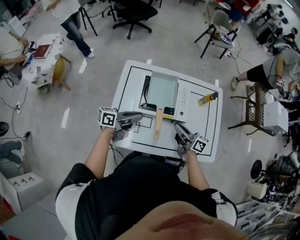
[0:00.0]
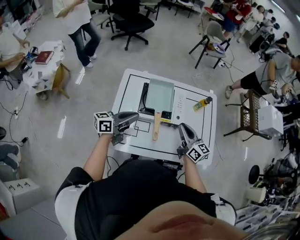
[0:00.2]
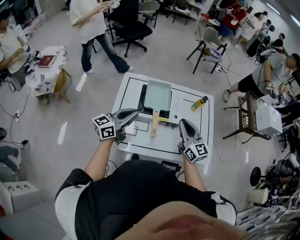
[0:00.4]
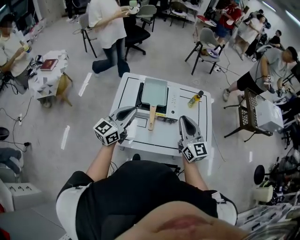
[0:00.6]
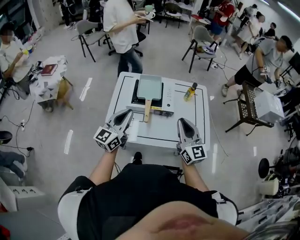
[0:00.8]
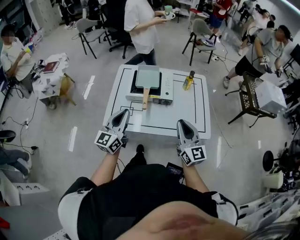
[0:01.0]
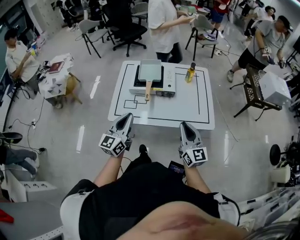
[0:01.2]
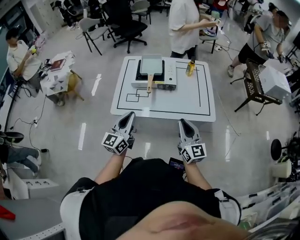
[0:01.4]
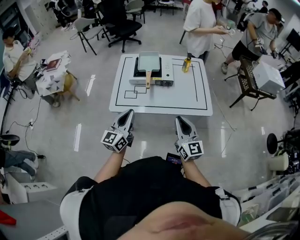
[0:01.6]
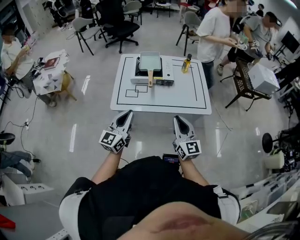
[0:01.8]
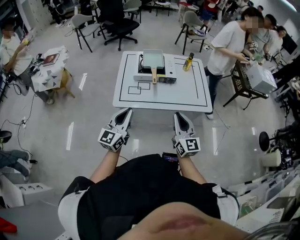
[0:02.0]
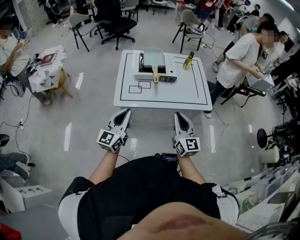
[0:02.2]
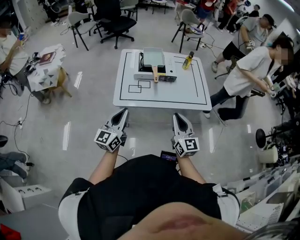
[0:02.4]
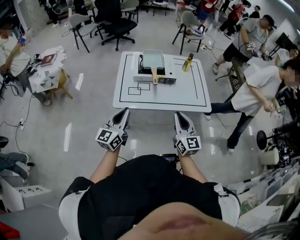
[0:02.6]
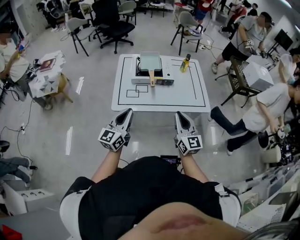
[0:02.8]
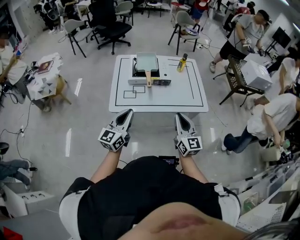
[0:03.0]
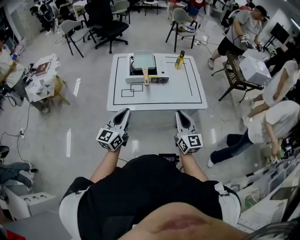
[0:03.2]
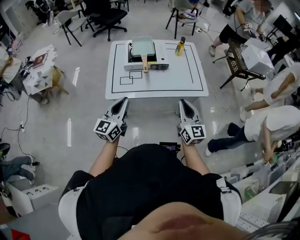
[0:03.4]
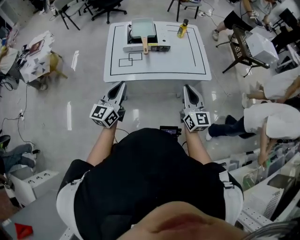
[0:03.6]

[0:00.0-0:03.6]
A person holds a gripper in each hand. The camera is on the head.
0:00.0 to 0:01.8: The left gripper travels backward and upward by about 35 cm, and changes its angle by about 60 degrees; the right gripper travels backward by approximately 35 cm, and rotates around the line of its fingers by about 50 degrees, counterclockwise from behind.
0:01.8 to 0:03.6: The left gripper travels to the left and back again, approximately 10 cm each way.

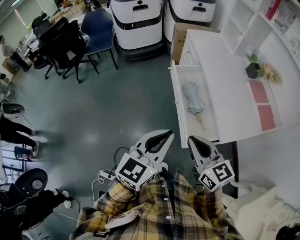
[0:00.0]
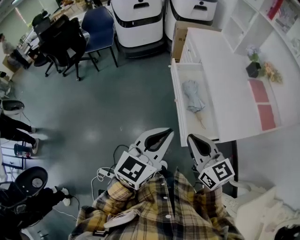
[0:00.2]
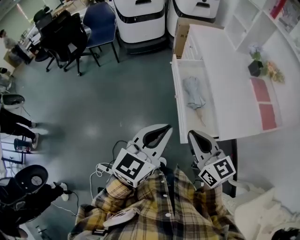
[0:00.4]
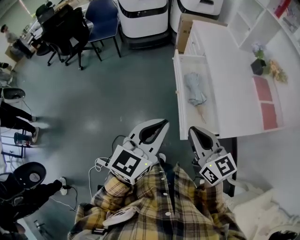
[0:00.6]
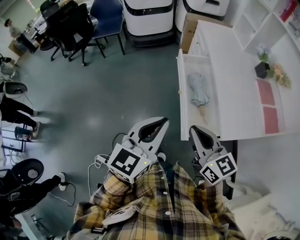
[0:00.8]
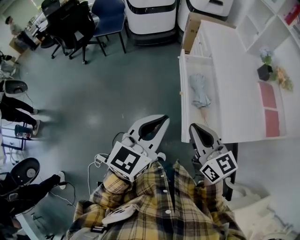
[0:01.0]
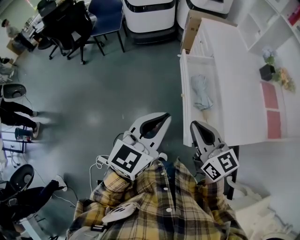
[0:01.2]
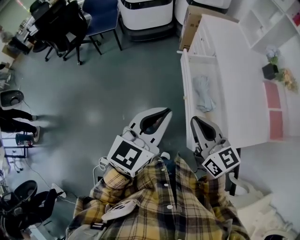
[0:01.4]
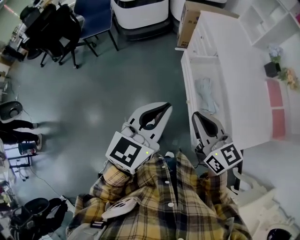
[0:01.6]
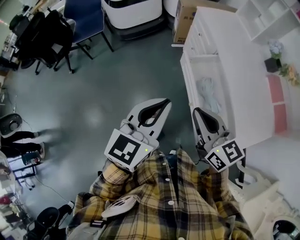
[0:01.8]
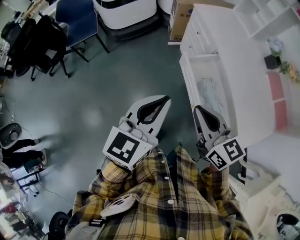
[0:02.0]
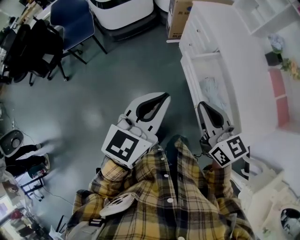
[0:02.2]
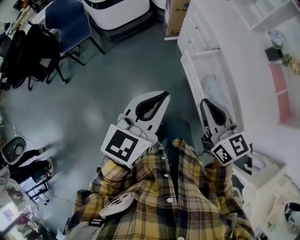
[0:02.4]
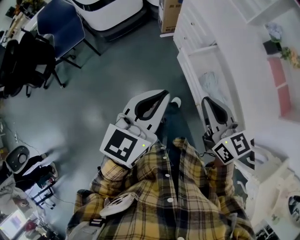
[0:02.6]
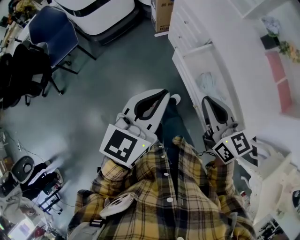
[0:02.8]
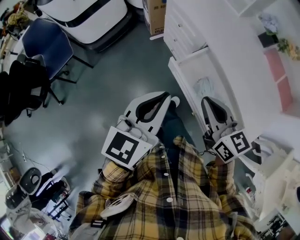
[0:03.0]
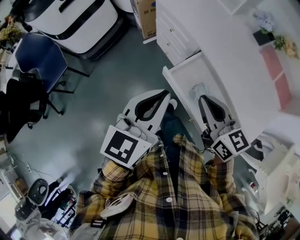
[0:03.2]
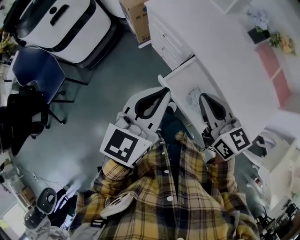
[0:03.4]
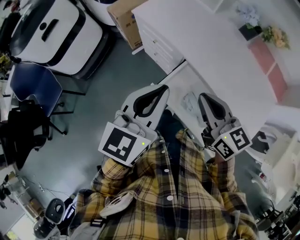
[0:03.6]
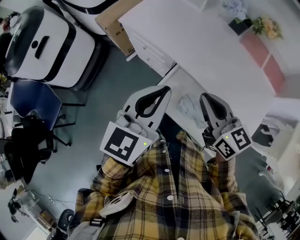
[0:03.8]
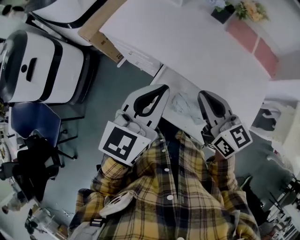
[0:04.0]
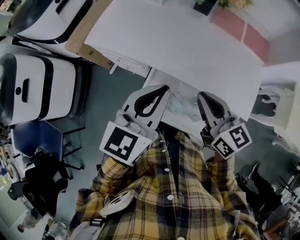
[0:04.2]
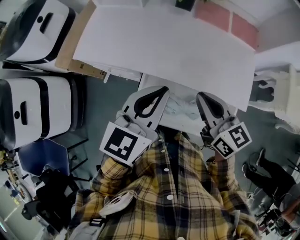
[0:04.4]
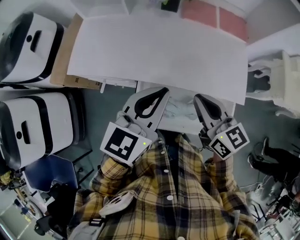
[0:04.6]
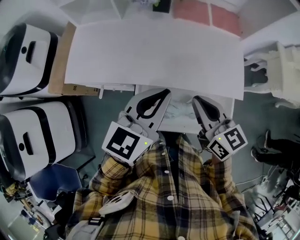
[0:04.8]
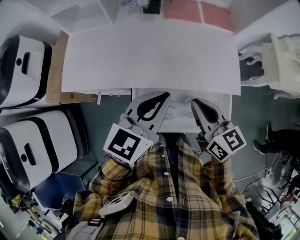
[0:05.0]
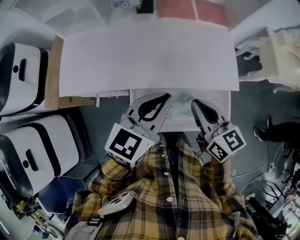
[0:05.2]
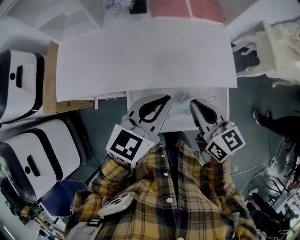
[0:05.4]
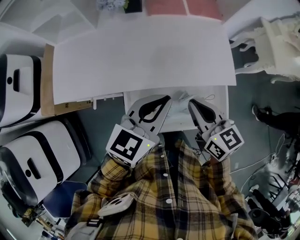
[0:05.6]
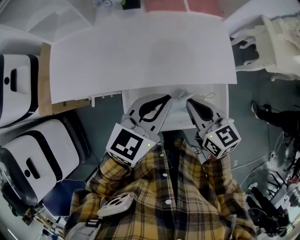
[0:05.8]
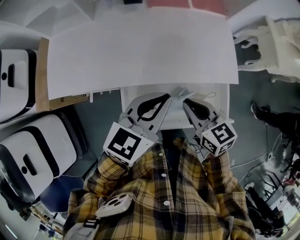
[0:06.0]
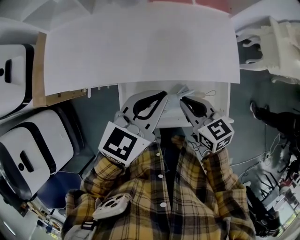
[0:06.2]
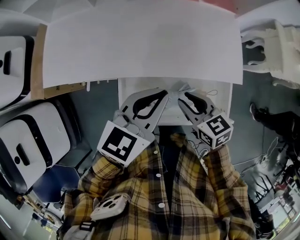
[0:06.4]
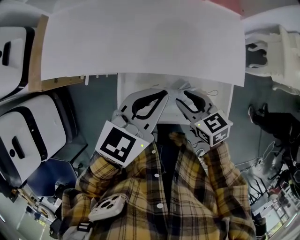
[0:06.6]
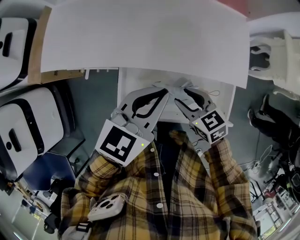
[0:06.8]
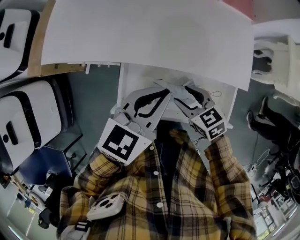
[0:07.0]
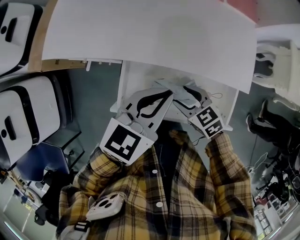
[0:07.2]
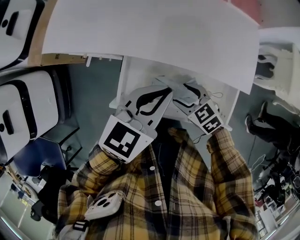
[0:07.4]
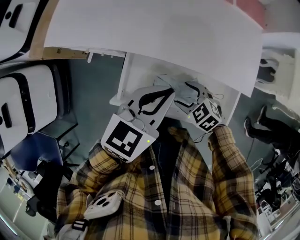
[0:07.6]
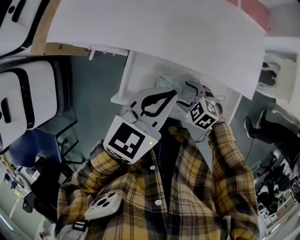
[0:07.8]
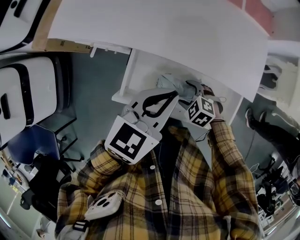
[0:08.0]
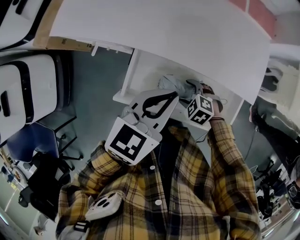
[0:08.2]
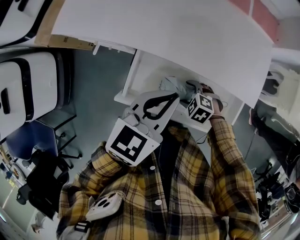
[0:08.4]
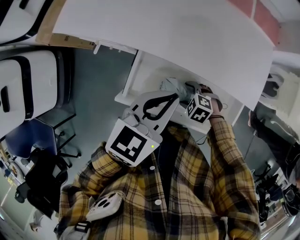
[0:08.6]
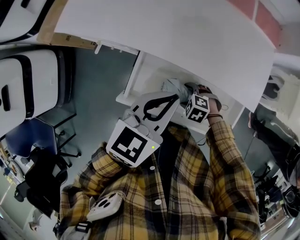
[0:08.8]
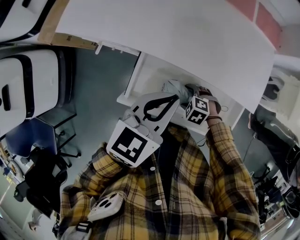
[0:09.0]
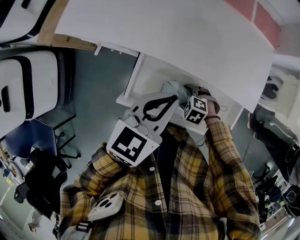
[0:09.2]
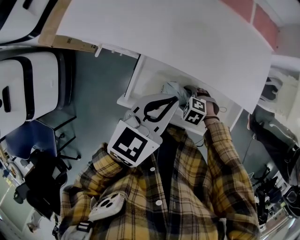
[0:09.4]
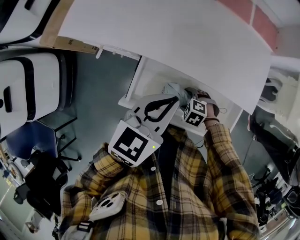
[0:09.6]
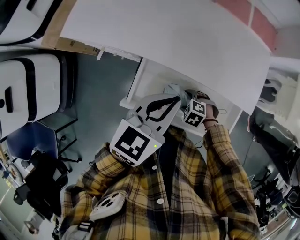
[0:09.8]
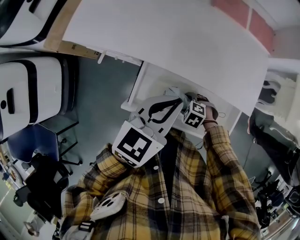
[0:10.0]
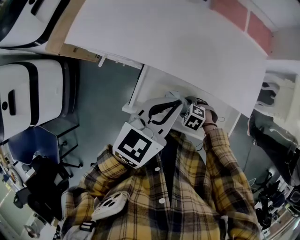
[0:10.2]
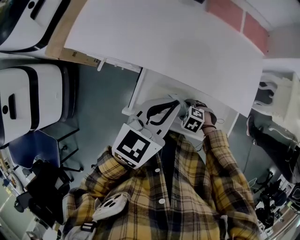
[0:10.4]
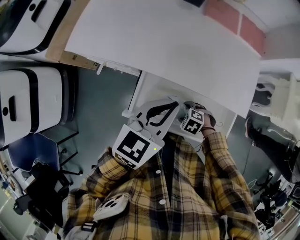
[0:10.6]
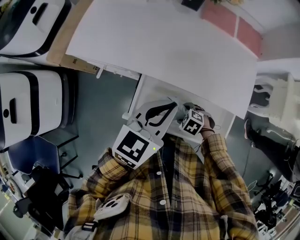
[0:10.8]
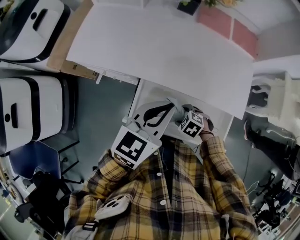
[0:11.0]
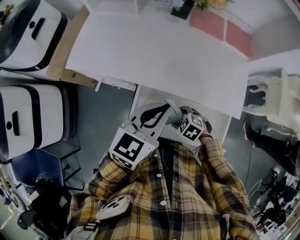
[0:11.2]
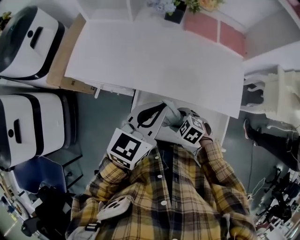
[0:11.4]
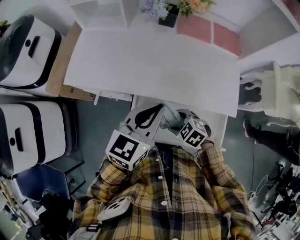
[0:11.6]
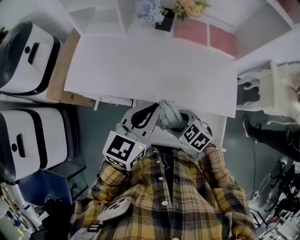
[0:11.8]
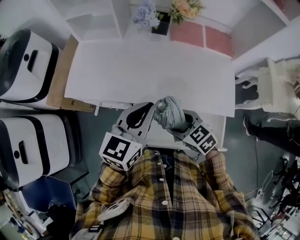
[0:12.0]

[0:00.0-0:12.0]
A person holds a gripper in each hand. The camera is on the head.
0:00.0 to 0:01.6: Both grippers move forward, some 15 cm.
0:01.6 to 0:03.0: Both grippers move forward, roughly 20 cm. The left gripper turns by roughly 20 degrees. The right gripper turns by approximately 30 degrees.
0:03.0 to 0:04.4: The left gripper shifts by about 25 cm, and rotates about 40 degrees. The right gripper shifts by some 20 cm, and rotates roughly 40 degrees.
0:04.4 to 0:06.0: The left gripper shifts approximately 10 cm to the right and downward, and turns by about 30 degrees. Meanwhile the right gripper is displaced downward by about 10 cm, and turns by roughly 20 degrees.
0:06.0 to 0:07.6: The right gripper travels downward by approximately 15 cm, rotates some 50 degrees, and opens its fingers, while the left gripper moves roughly 5 cm.
0:07.6 to 0:09.0: The right gripper heads downward, covering some 10 cm, and swivels about 30 degrees.
0:09.0 to 0:10.4: The grippers stay close to where they were, moving slightly.
0:10.4 to 0:12.0: The left gripper ends up about 10 cm from where it was. The right gripper moves upward, some 25 cm, and tilts its fingers roughly 30 degrees upward.

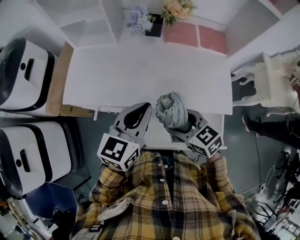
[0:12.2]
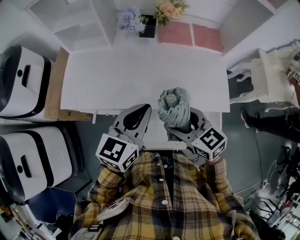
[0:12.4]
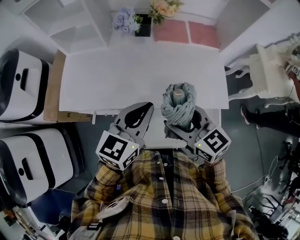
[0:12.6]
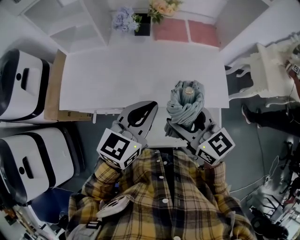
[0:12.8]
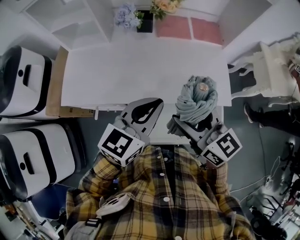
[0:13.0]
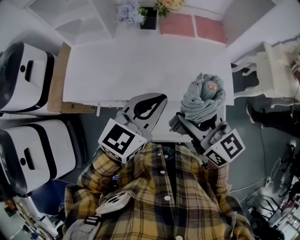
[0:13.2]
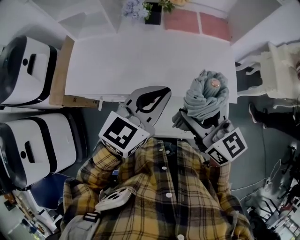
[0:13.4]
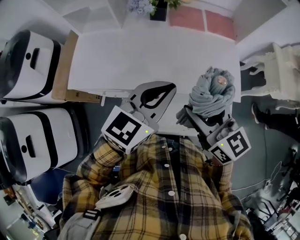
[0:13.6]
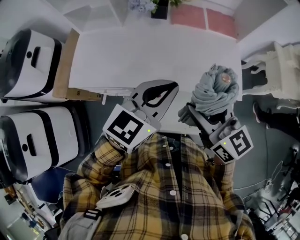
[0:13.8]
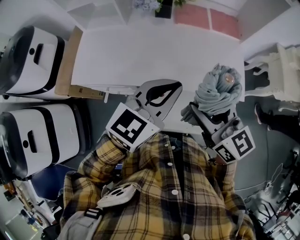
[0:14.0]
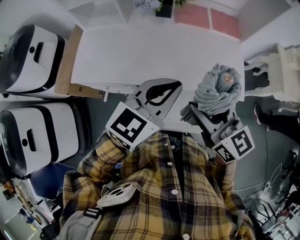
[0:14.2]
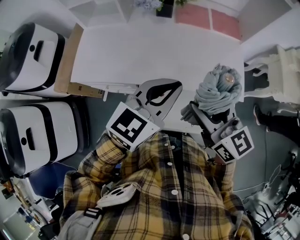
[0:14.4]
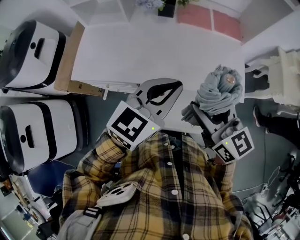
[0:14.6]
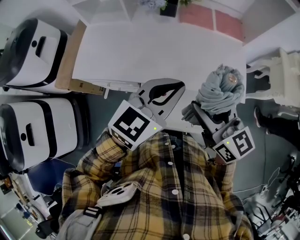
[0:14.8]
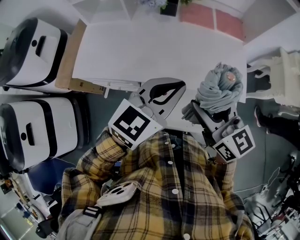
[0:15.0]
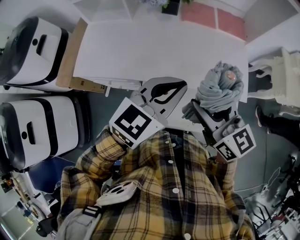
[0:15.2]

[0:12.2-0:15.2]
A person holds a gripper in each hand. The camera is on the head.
0:12.2 to 0:13.8: The right gripper goes roughly 15 cm upward, and changes its angle by approximately 40 degrees. The left gripper travels to the right by roughly 5 cm.
0:13.8 to 0:15.2: The two grippers keep their place.

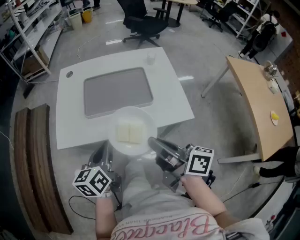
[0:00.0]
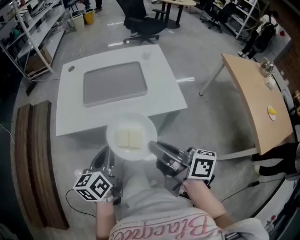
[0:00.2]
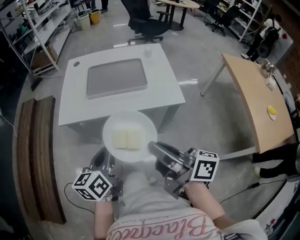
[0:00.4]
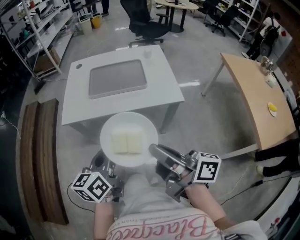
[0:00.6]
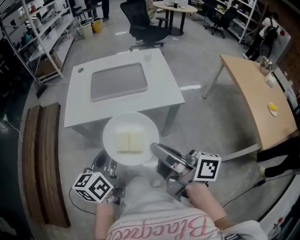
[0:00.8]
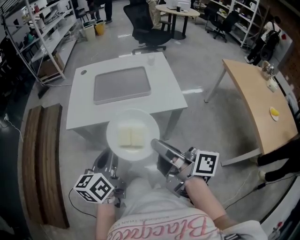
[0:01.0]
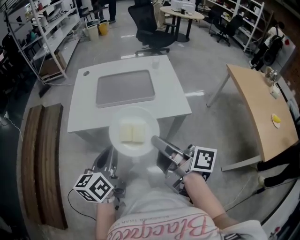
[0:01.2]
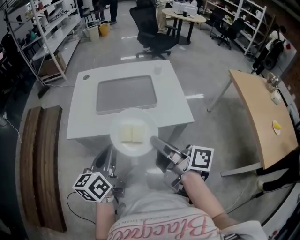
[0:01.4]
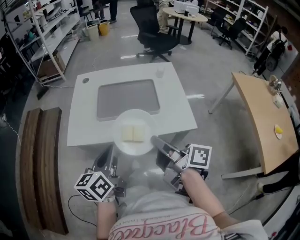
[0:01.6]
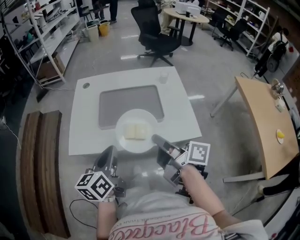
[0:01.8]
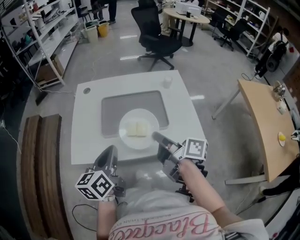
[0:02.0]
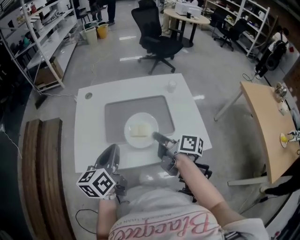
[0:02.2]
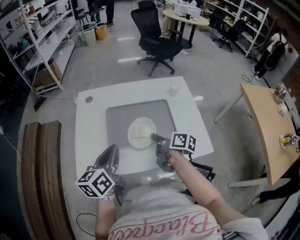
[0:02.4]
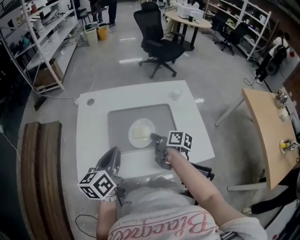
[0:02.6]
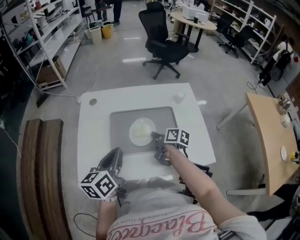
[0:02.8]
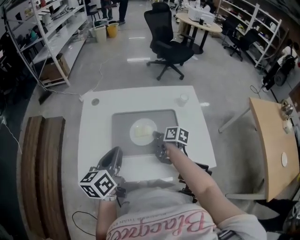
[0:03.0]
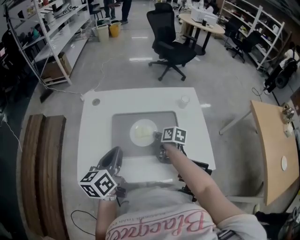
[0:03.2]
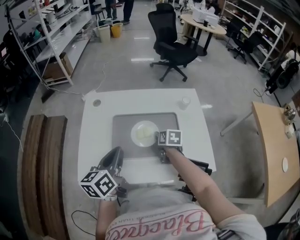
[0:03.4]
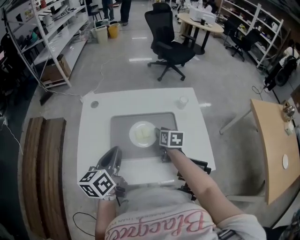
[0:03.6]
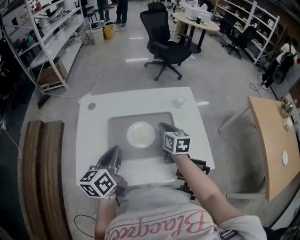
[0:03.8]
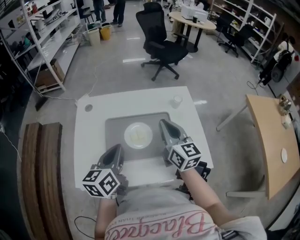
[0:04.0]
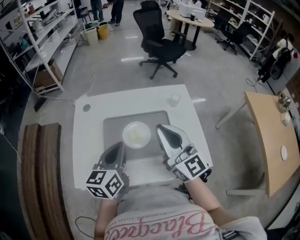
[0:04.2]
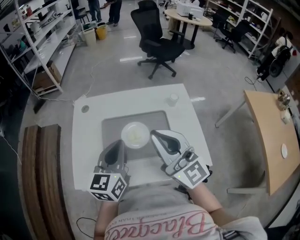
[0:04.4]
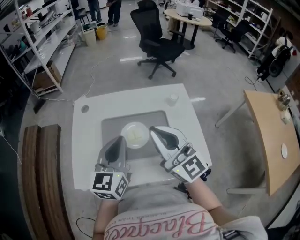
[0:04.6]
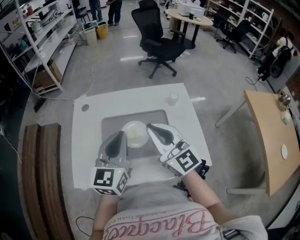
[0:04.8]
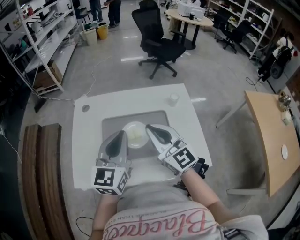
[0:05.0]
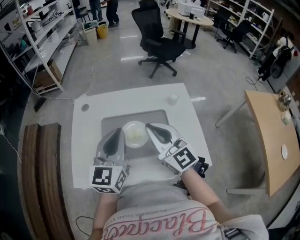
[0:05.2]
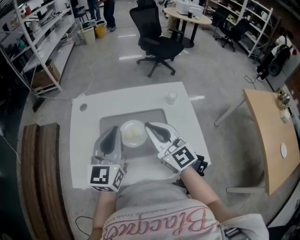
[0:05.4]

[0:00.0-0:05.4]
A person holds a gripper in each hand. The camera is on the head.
0:00.0 to 0:01.4: The left gripper is displaced backward by roughly 5 cm, while the right gripper travels backward and back again, some 15 cm each way.
0:01.4 to 0:02.8: The right gripper shifts some 35 cm forward and downward, and tips its fingers downward by about 40 degrees; the left gripper shifts about 20 cm forward.
0:02.8 to 0:04.0: The right gripper heads upward, covering some 20 cm, twists about 50 degrees counterclockwise, seen from behind, and opens and closes again.
0:04.0 to 0:05.4: The left gripper goes some 5 cm upward, and changes its angle by approximately 30 degrees. Meanwhile the right gripper travels upward and back again, about 10 cm each way, and rotates some 30 degrees.
